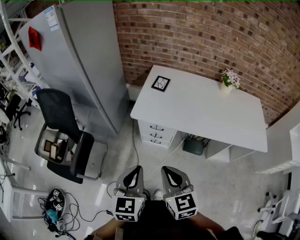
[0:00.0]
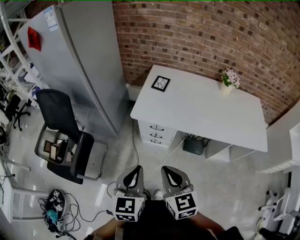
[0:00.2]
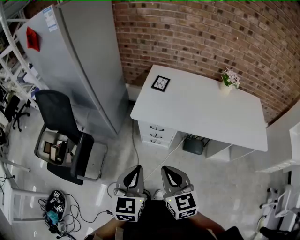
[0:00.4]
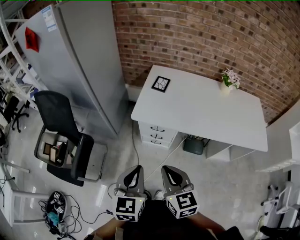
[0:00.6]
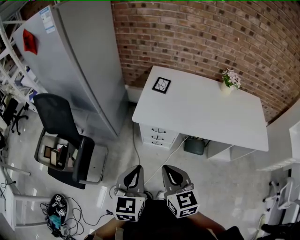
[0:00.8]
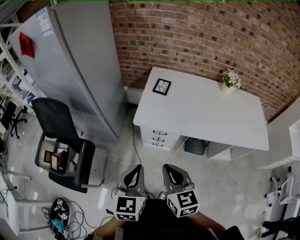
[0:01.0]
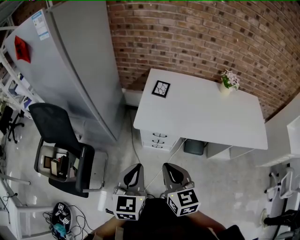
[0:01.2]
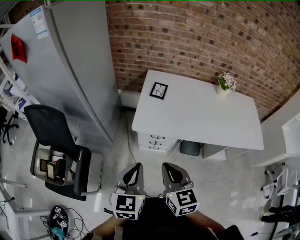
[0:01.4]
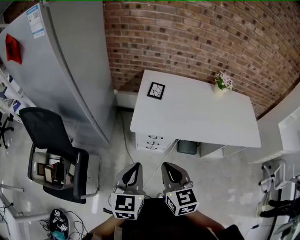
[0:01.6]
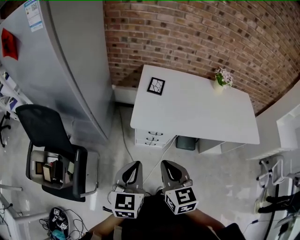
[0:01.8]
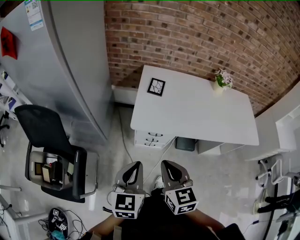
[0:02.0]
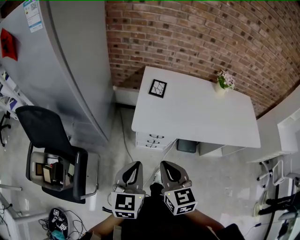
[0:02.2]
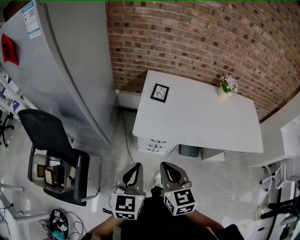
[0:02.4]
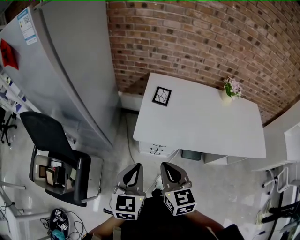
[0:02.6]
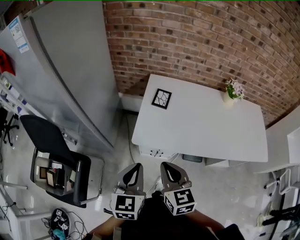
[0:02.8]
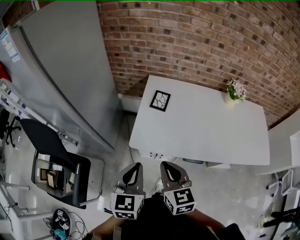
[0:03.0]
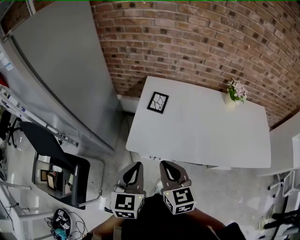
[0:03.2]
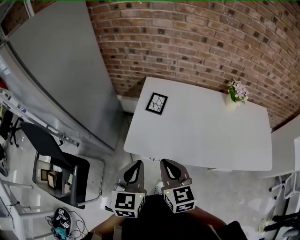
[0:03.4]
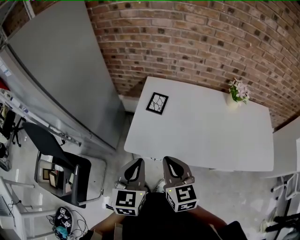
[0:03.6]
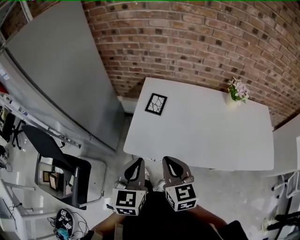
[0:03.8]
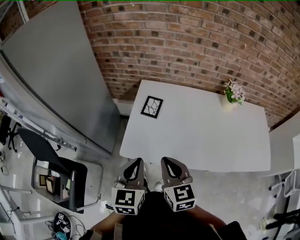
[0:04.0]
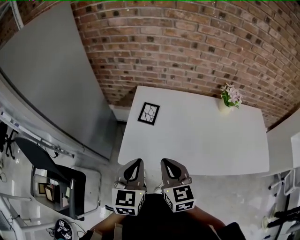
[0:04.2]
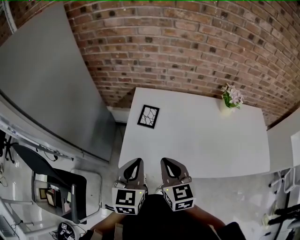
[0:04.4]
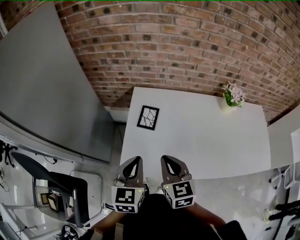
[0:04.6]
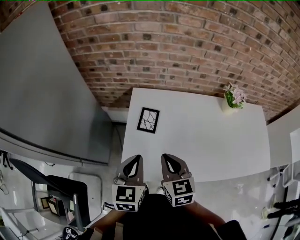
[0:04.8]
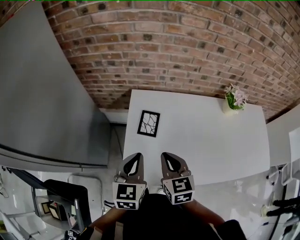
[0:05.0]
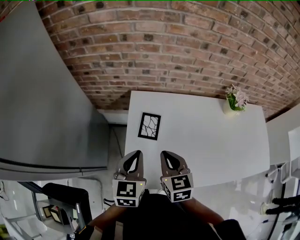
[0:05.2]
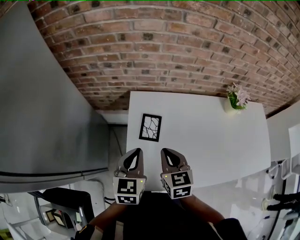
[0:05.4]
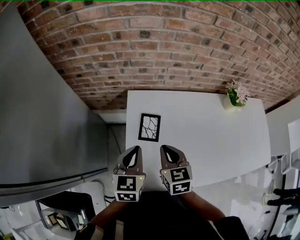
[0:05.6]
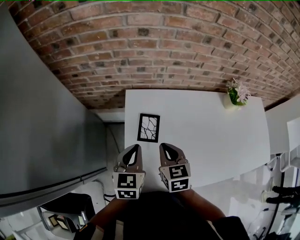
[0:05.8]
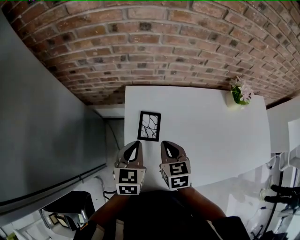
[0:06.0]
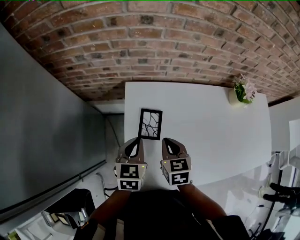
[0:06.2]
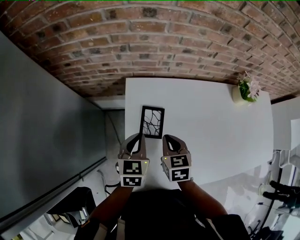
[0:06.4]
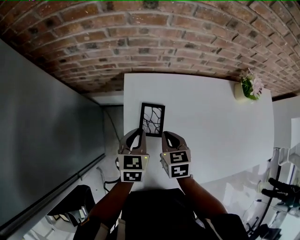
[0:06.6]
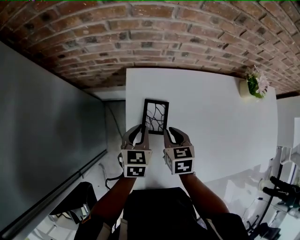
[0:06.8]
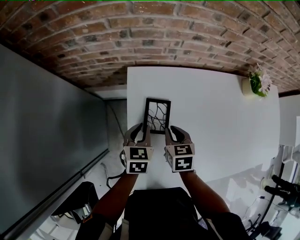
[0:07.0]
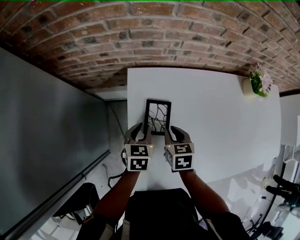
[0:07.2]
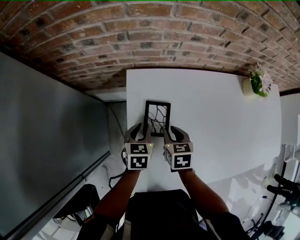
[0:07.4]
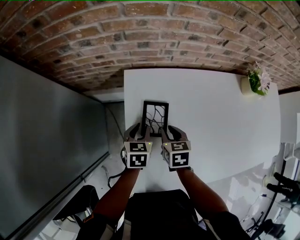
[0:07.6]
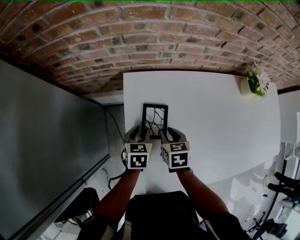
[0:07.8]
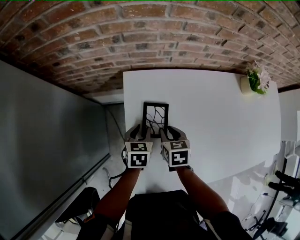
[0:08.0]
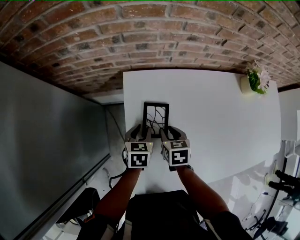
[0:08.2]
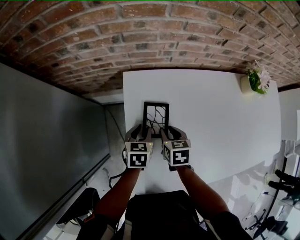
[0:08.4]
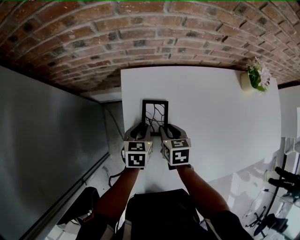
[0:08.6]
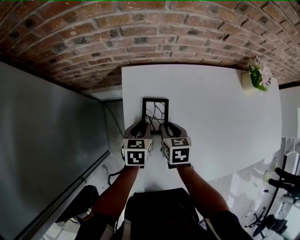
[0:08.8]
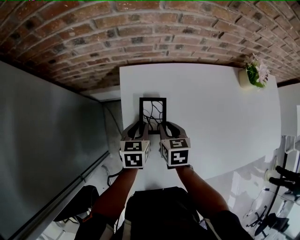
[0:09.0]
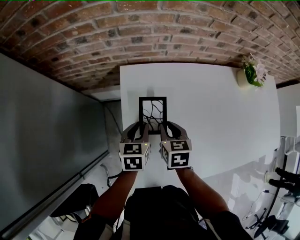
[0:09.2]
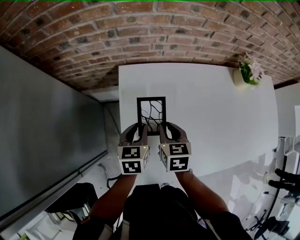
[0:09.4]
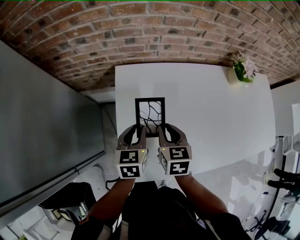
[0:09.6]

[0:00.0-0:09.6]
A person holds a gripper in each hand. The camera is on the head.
0:00.0 to 0:01.6: The grippers both shift forward and to the left by about 15 cm.
0:01.6 to 0:03.2: The right gripper is displaced forward by roughly 15 cm; the left gripper heads forward and to the right, covering approximately 15 cm.
0:03.2 to 0:04.8: The two grippers go roughly 20 cm forward.
0:04.8 to 0:06.4: Both grippers travel together forward and downward, roughly 20 cm. The right gripper swivels roughly 20 degrees.
0:06.4 to 0:08.0: Both grippers move downward, roughly 10 cm. The right gripper opens its fingers; the left gripper opens its fingers.
0:08.0 to 0:09.6: The right gripper is displaced upward by about 10 cm. Meanwhile the left gripper shifts about 10 cm upward and backward.

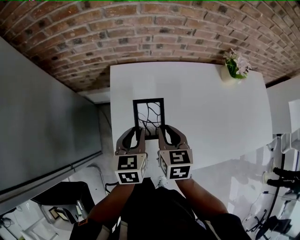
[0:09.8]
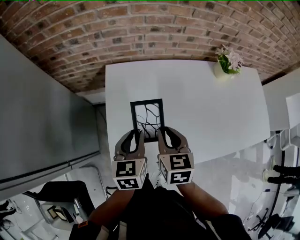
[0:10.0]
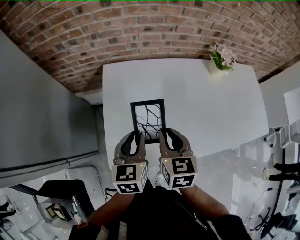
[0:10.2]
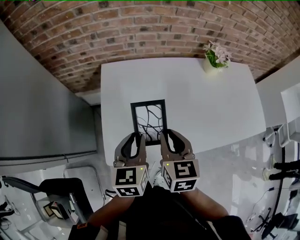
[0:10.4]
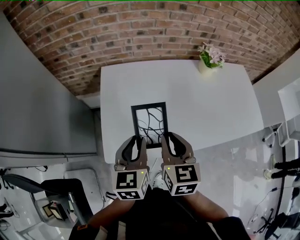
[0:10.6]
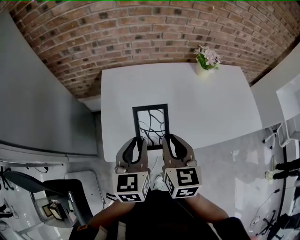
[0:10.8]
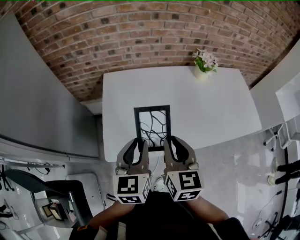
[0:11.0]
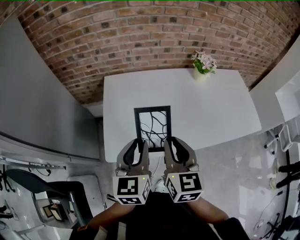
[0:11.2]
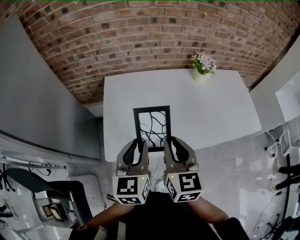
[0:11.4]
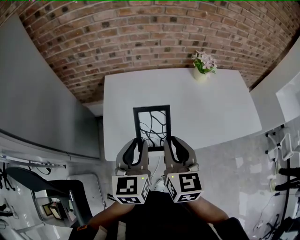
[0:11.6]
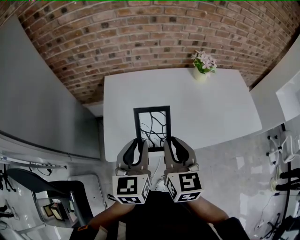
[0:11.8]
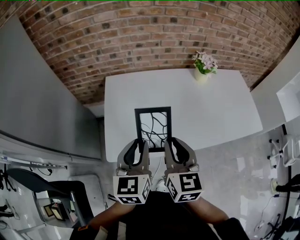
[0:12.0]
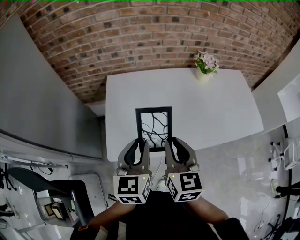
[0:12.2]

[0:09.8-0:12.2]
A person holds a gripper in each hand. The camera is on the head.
0:09.8 to 0:11.0: Both grippers travel together backward, upward and to the right, roughly 25 cm.
0:11.0 to 0:12.2: The grippers stay close to where they were, moving slightly.

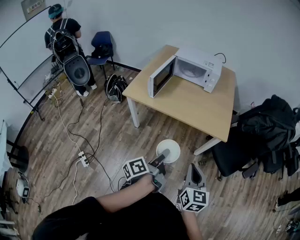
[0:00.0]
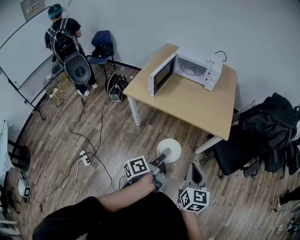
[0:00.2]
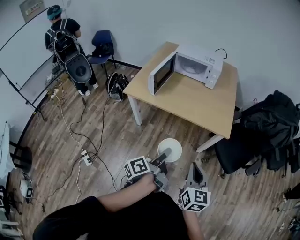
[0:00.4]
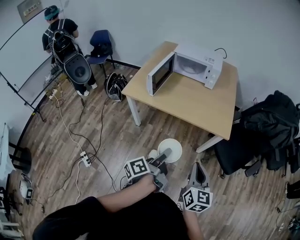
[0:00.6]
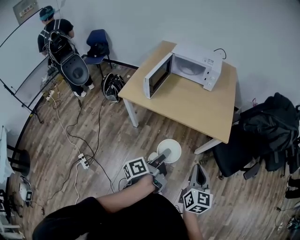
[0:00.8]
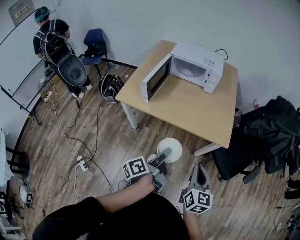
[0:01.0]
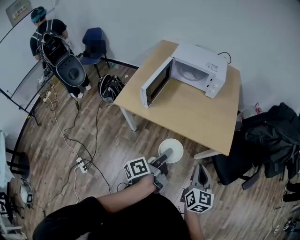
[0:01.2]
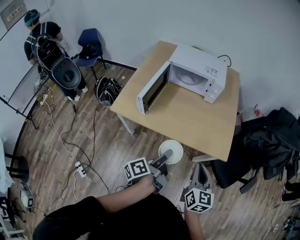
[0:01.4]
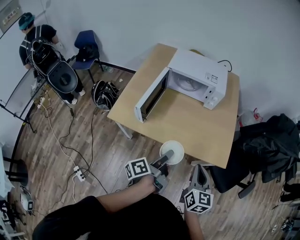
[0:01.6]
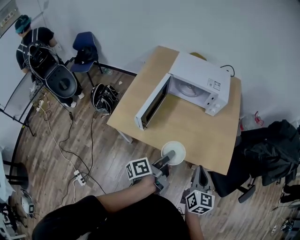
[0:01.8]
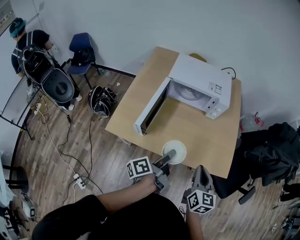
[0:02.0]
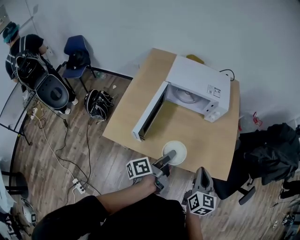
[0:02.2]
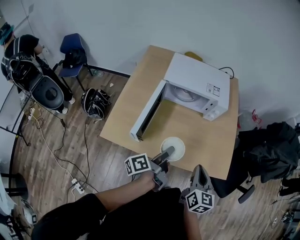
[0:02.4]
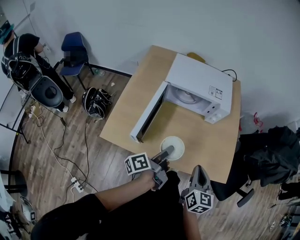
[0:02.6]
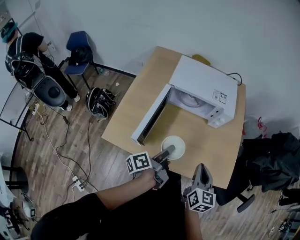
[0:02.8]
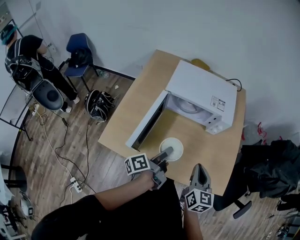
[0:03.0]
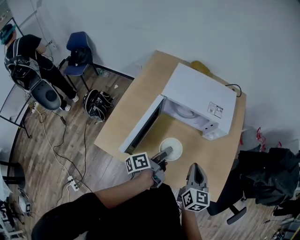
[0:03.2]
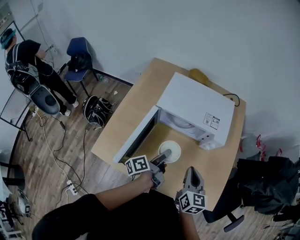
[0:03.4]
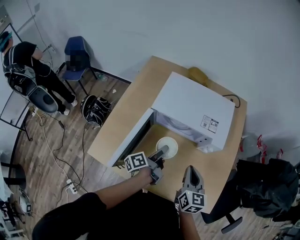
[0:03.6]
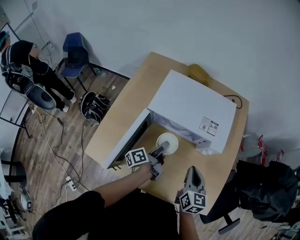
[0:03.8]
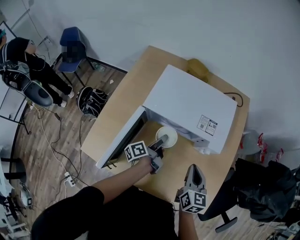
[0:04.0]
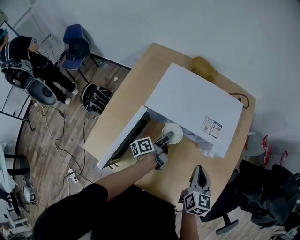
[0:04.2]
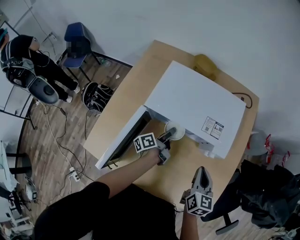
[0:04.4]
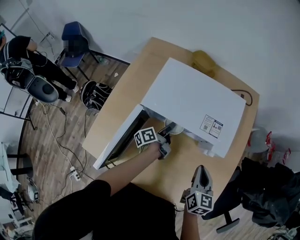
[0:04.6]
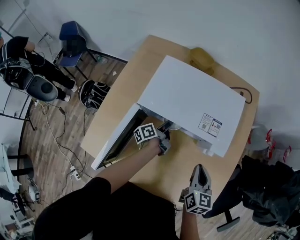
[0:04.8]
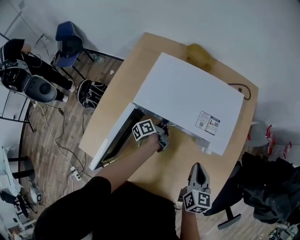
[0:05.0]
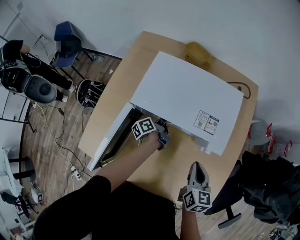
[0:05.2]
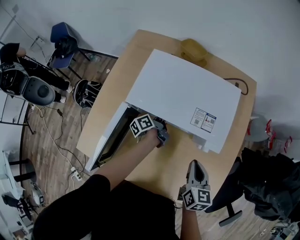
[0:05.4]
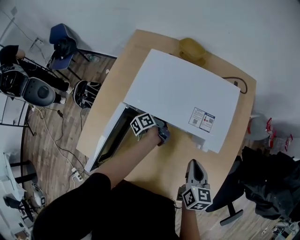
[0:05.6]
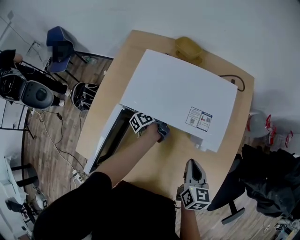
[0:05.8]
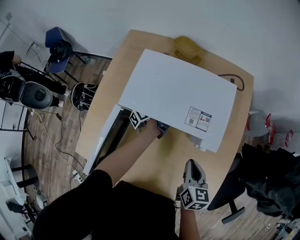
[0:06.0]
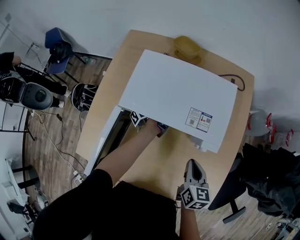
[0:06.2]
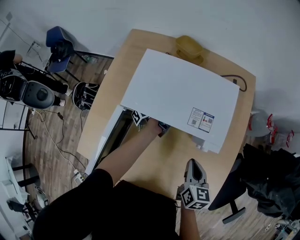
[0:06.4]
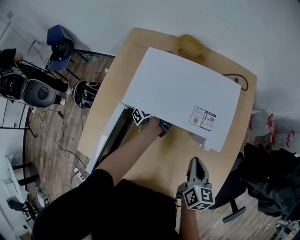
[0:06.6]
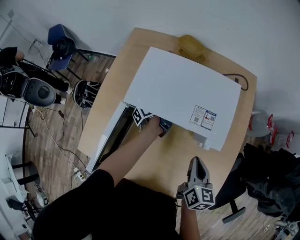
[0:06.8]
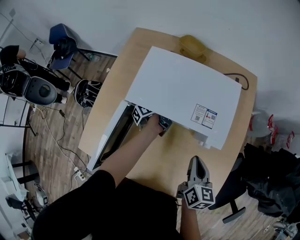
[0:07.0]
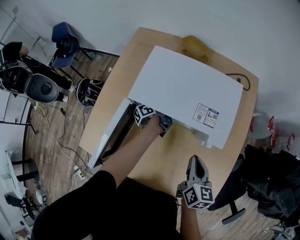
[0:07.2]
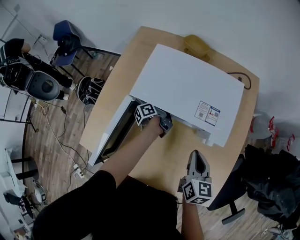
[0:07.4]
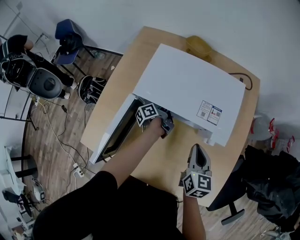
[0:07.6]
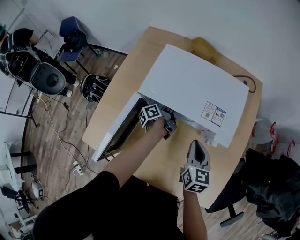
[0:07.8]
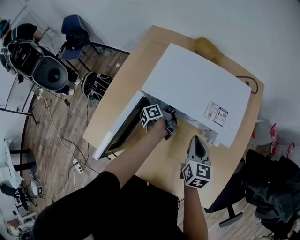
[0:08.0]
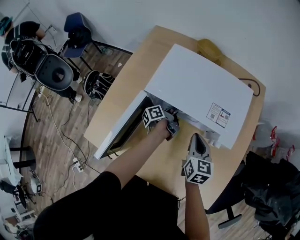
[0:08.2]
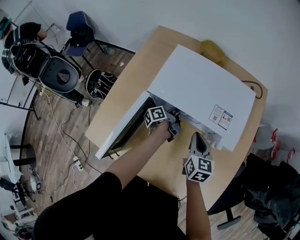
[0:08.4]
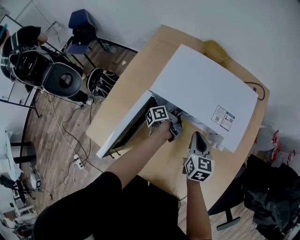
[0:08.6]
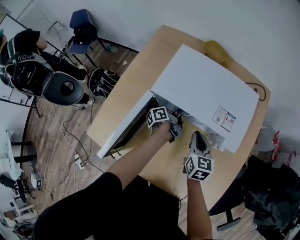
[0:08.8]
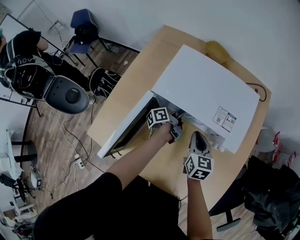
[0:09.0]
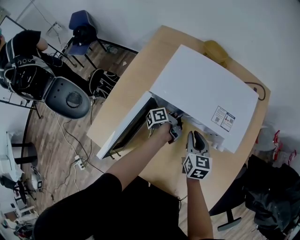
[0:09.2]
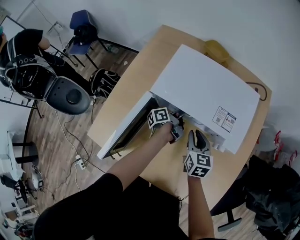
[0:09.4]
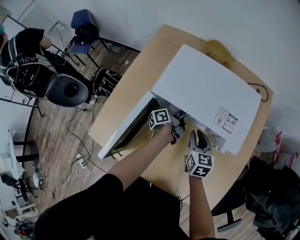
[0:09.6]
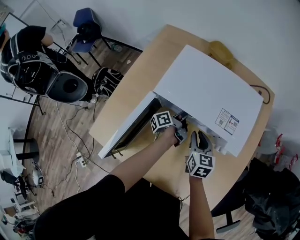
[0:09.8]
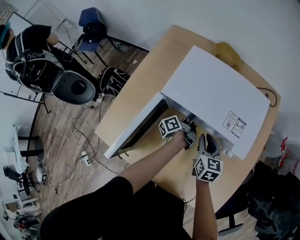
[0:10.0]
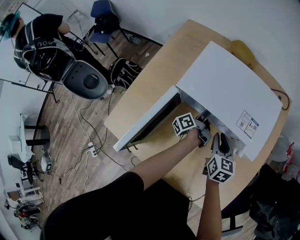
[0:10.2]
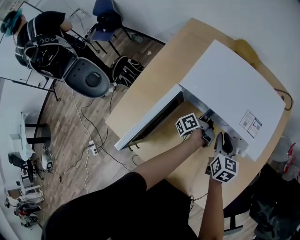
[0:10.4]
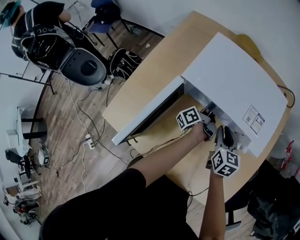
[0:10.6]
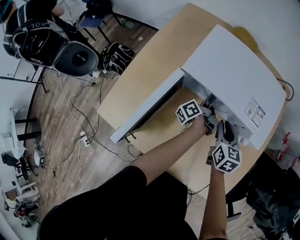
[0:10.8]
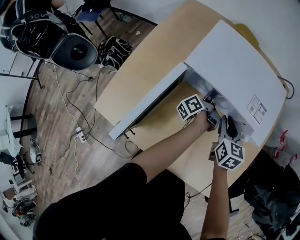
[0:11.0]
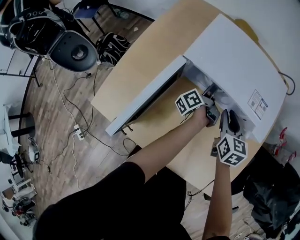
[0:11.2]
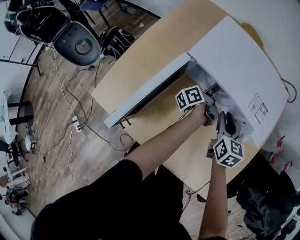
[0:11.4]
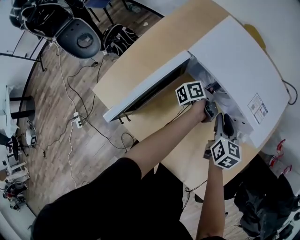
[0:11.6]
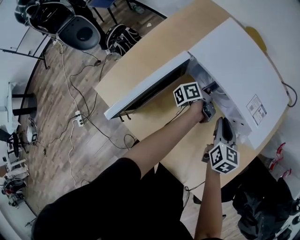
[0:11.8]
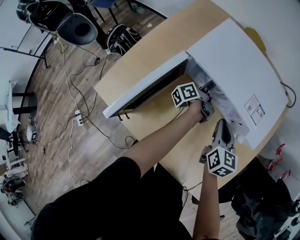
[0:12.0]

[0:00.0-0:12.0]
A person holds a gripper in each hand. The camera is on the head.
0:00.0 to 0:01.6: The right gripper shifts by approximately 25 cm.
0:01.6 to 0:03.0: The right gripper ends up roughly 20 cm from where it was.
0:03.0 to 0:04.4: The right gripper moves approximately 20 cm.
0:07.6 to 0:09.0: The right gripper changes place by roughly 10 cm.
